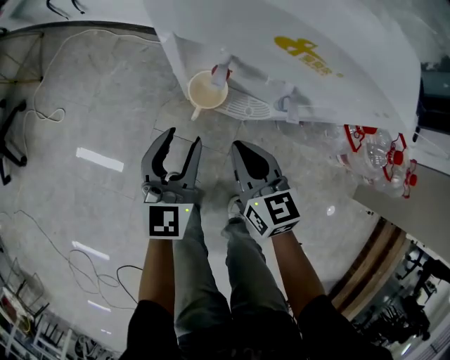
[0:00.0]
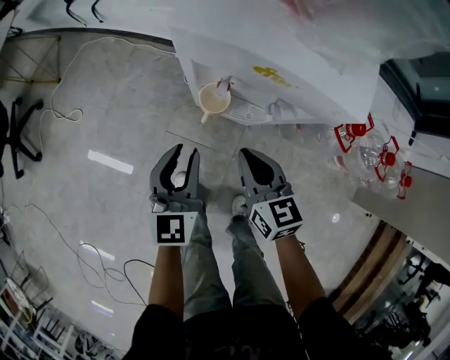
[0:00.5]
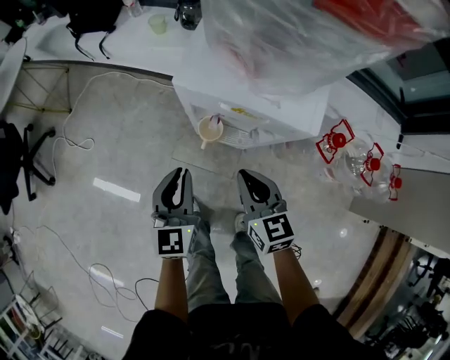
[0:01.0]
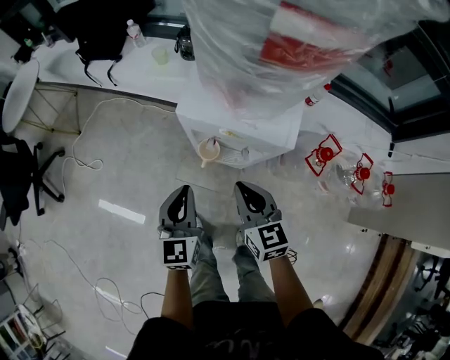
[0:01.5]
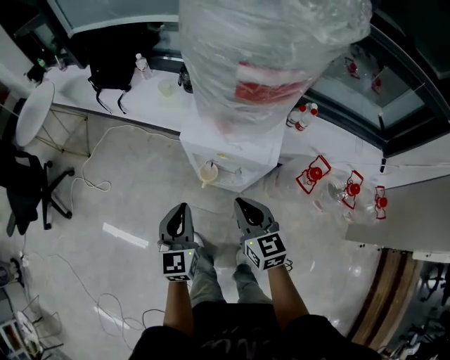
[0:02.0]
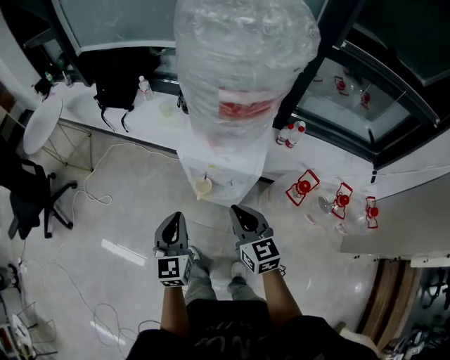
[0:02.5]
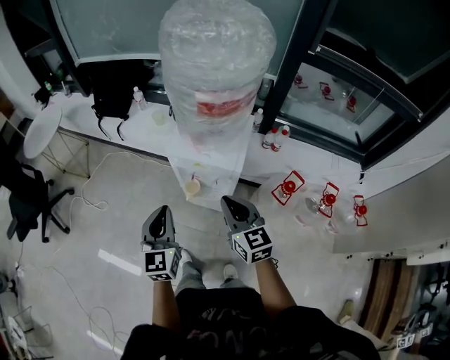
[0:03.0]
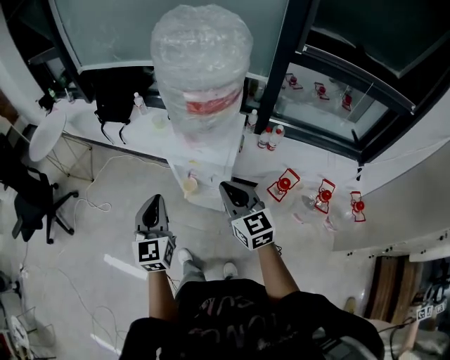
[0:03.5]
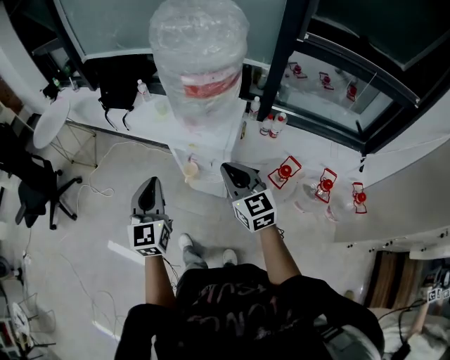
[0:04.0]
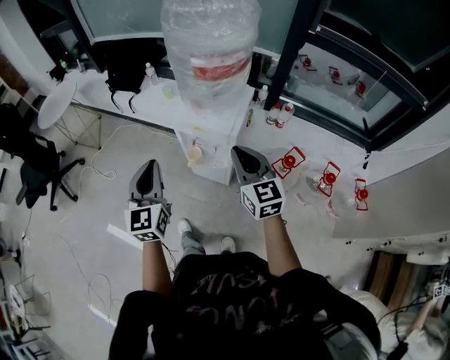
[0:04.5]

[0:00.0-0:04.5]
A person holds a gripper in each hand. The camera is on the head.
0:00.0 to 0:02.0: The two grippers go about 30 cm upward. The left gripper closes.
0:02.0 to 0:04.5: The right gripper heads upward, to the right and backward, covering some 20 cm, while the left gripper heads upward and backward, covering about 20 cm.

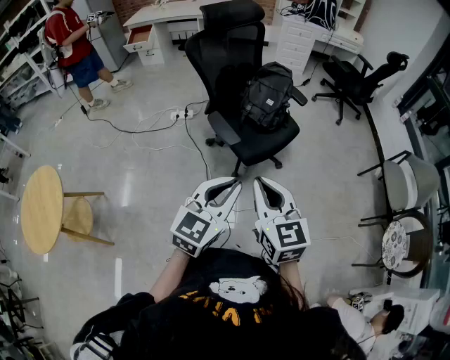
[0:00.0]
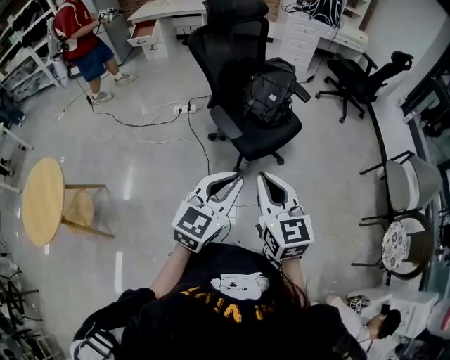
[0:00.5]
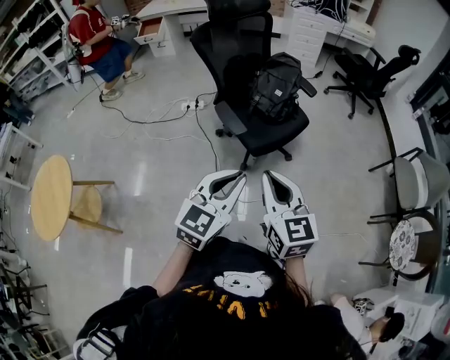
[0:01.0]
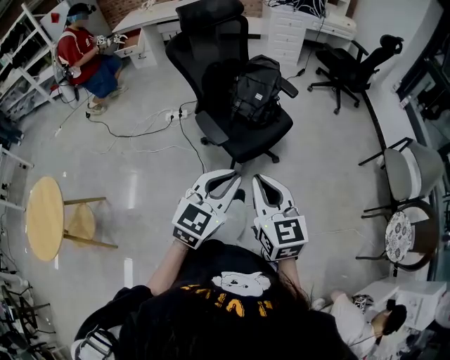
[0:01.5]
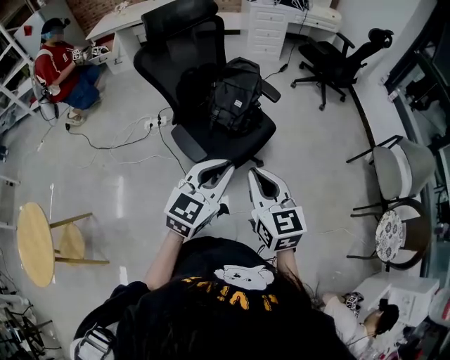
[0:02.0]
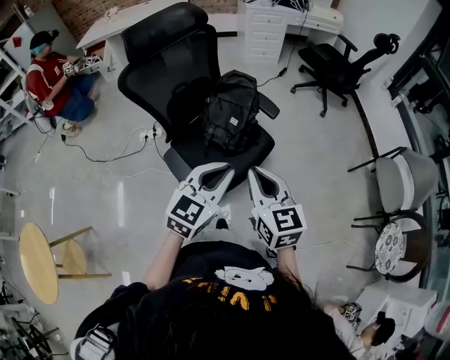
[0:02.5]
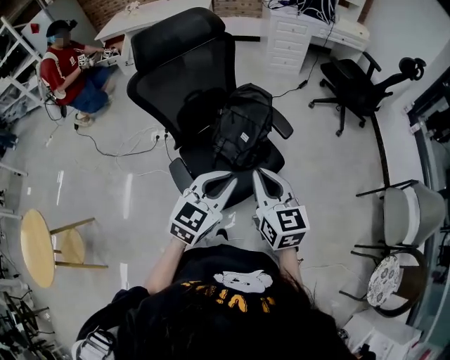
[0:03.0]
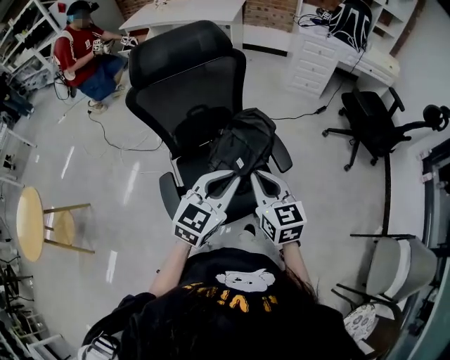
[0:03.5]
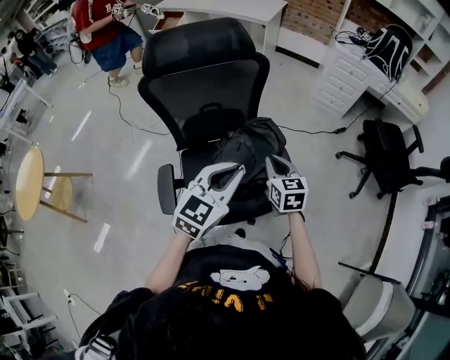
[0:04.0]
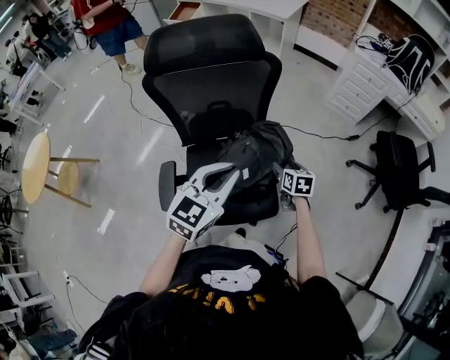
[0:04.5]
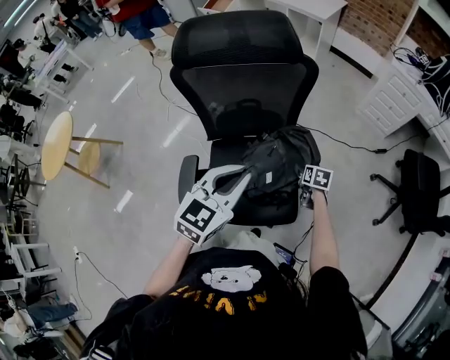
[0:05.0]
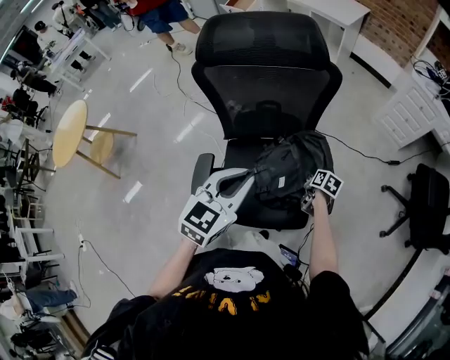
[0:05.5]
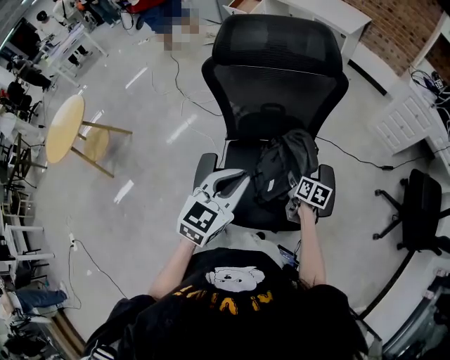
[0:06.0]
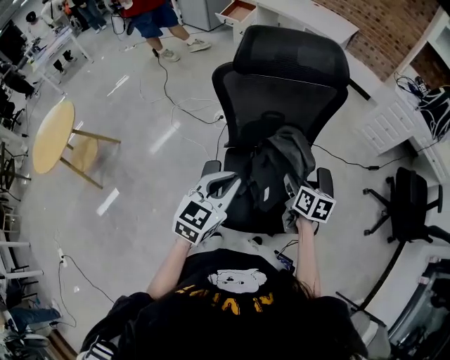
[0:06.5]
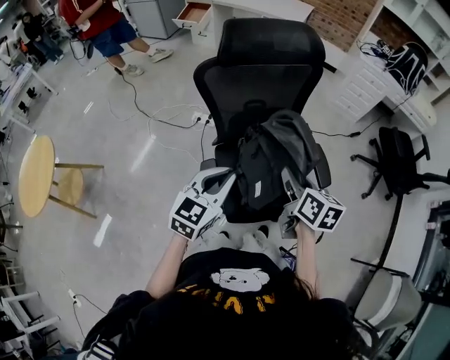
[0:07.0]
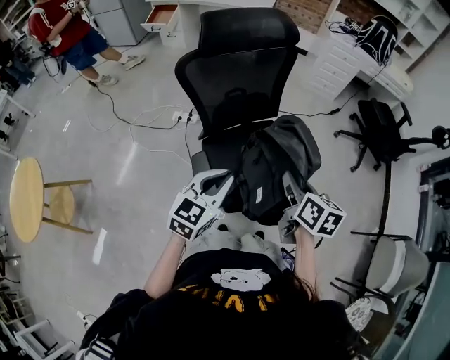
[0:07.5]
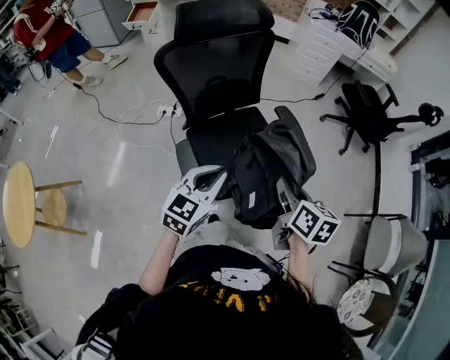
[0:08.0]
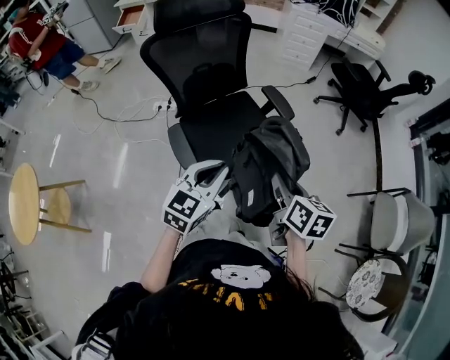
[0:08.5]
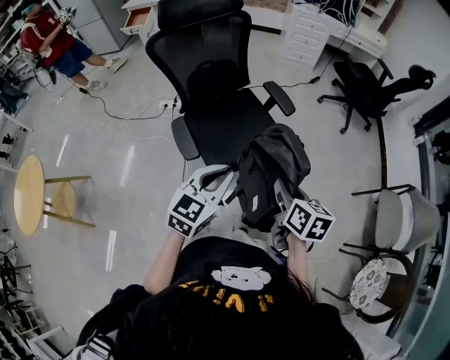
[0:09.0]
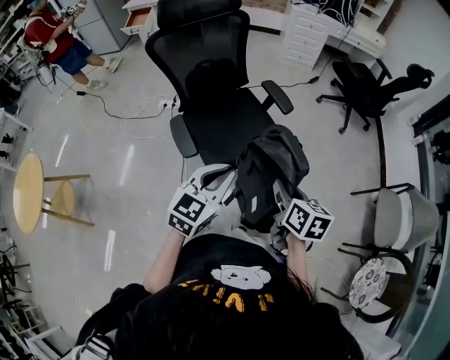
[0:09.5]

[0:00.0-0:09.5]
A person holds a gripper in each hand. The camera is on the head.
0:00.0 to 0:02.0: The two grippers go approximately 20 cm forward and to the right.
0:02.0 to 0:04.0: The right gripper ends up about 50 cm from where it was, and changes its angle by about 30 degrees, while the left gripper shifts by about 40 cm, and changes its angle by some 30 degrees.
0:04.0 to 0:05.5: The right gripper shifts approximately 25 cm downward and forward, rotates roughly 40 degrees, and opens up. The left gripper travels to the left by about 5 cm.
0:05.5 to 0:07.5: The left gripper changes place by approximately 20 cm, and changes its angle by about 20 degrees, while the right gripper changes place by some 50 cm, and turns by roughly 30 degrees.
0:07.5 to 0:09.5: The two grippers go about 25 cm backward and to the right.

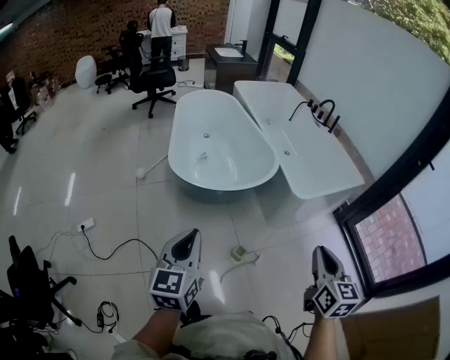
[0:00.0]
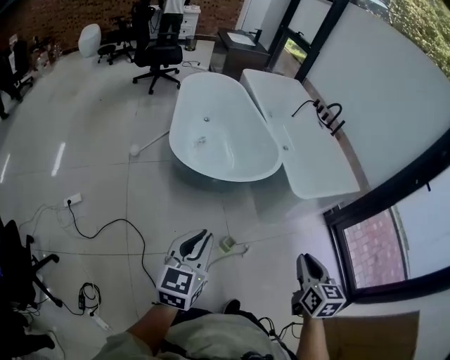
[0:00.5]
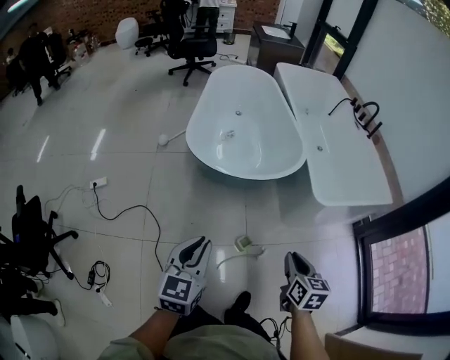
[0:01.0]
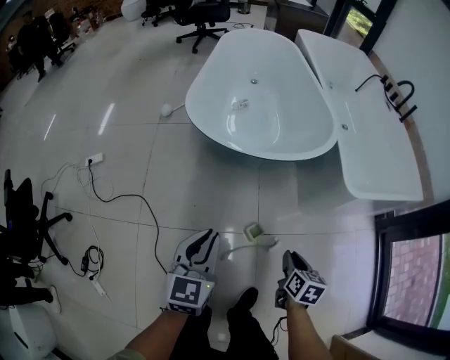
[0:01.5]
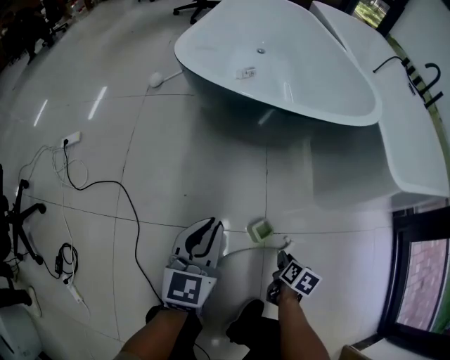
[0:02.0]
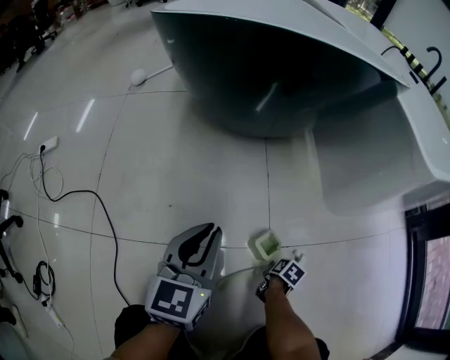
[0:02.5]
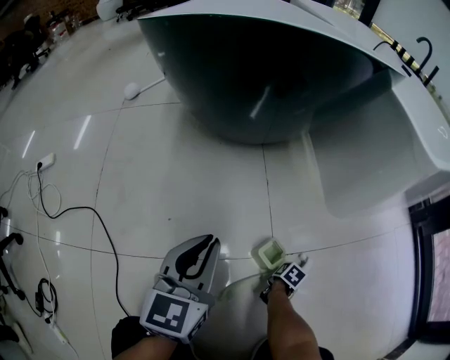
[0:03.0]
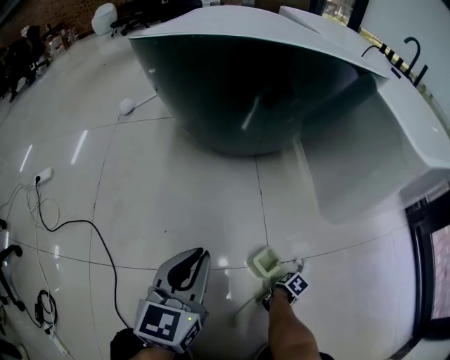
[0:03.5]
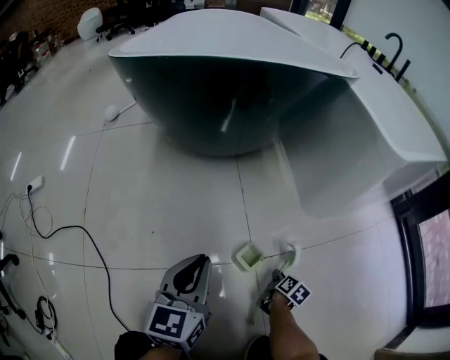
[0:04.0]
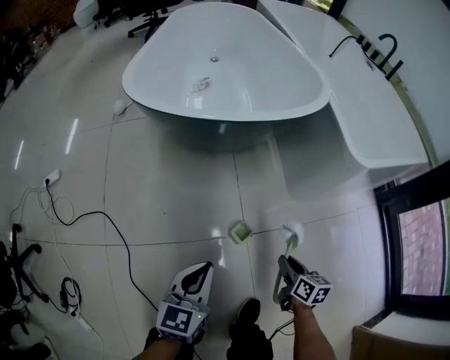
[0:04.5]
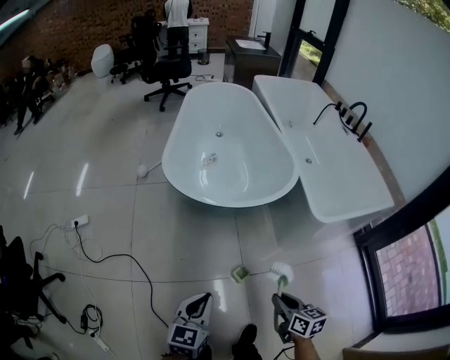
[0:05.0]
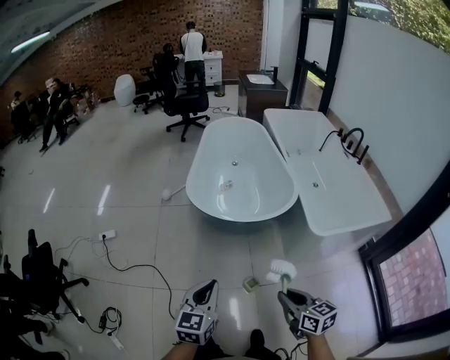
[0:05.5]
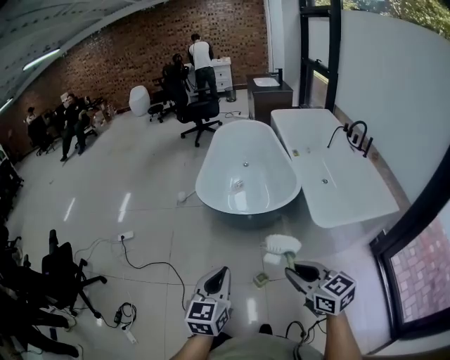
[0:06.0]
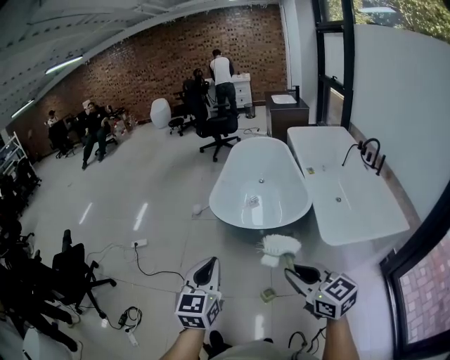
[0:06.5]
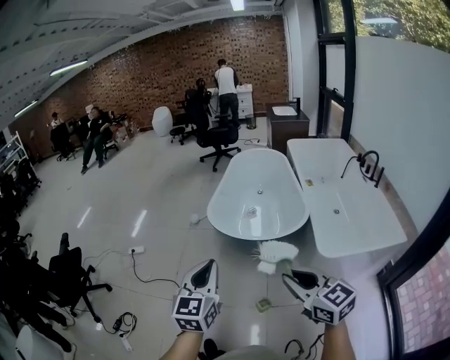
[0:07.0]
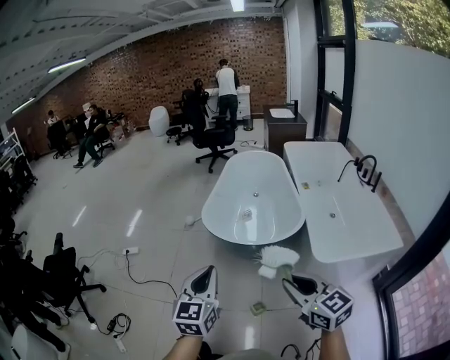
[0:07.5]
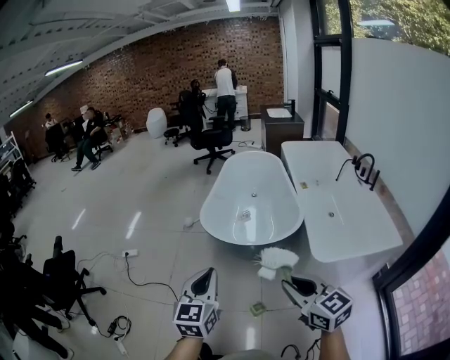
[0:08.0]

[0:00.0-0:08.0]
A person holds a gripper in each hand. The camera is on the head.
0:00.0 to 0:02.0: The grippers both shift downward by approximately 70 cm. The right gripper tilts its fingers roughly 40 degrees downward.
0:02.0 to 0:04.0: Both grippers move downward, some 25 cm. The right gripper changes its angle by roughly 20 degrees.
0:04.0 to 0:06.0: Both grippers move upward, some 90 cm. The right gripper tips its fingers upward by some 40 degrees.
0:06.0 to 0:08.0: The two grippers go approximately 5 cm upward.

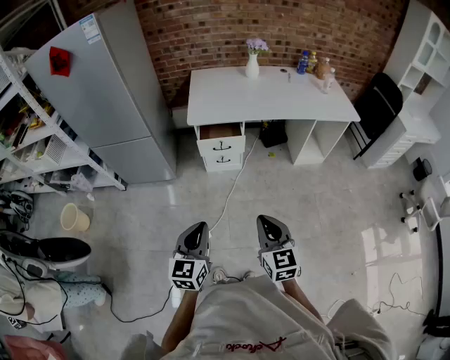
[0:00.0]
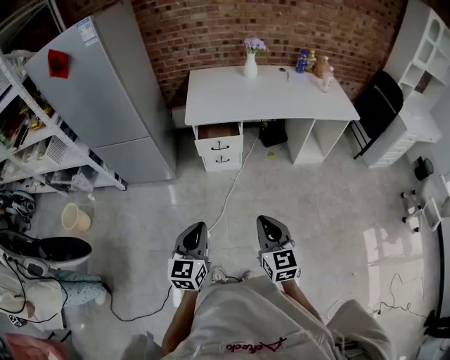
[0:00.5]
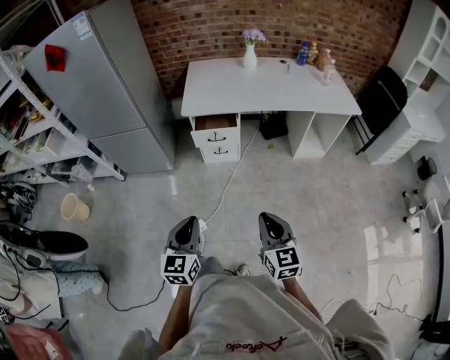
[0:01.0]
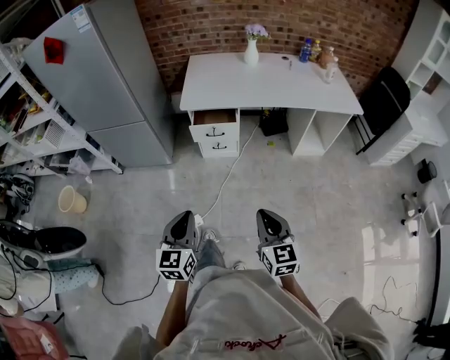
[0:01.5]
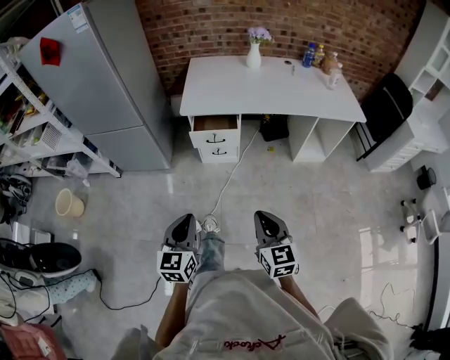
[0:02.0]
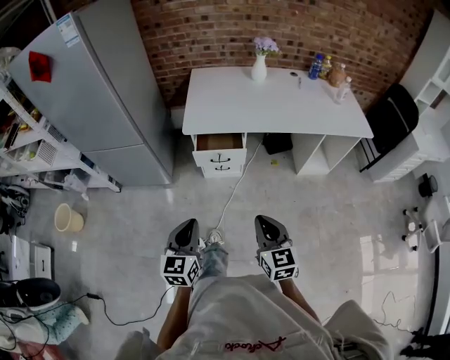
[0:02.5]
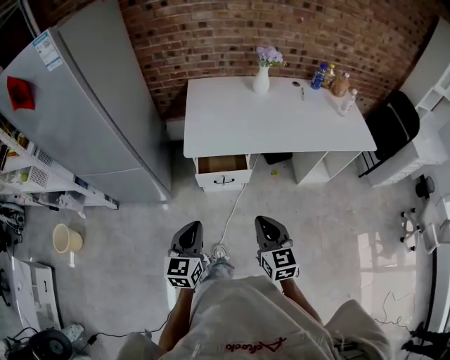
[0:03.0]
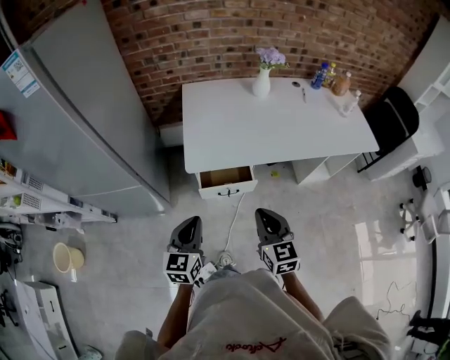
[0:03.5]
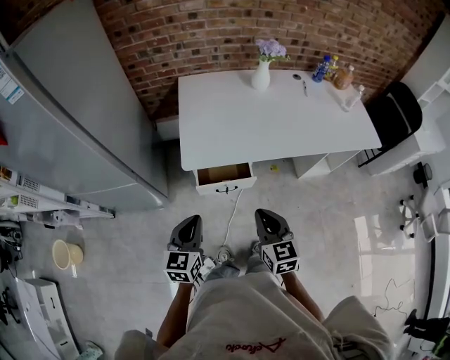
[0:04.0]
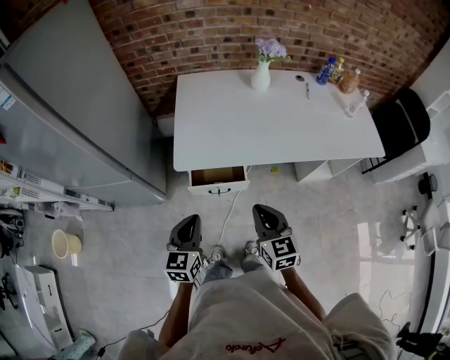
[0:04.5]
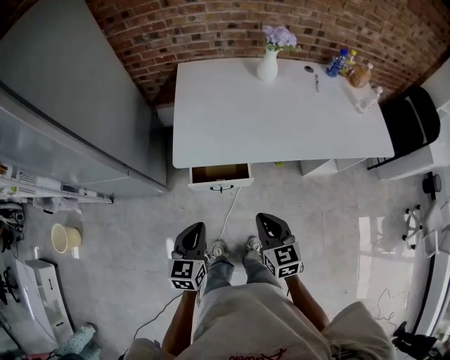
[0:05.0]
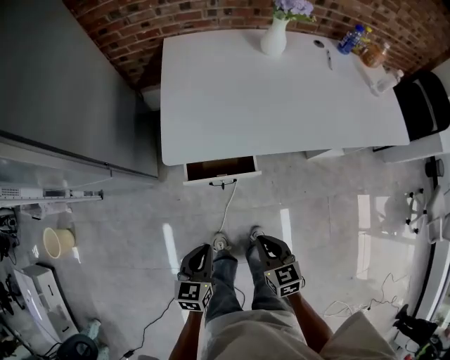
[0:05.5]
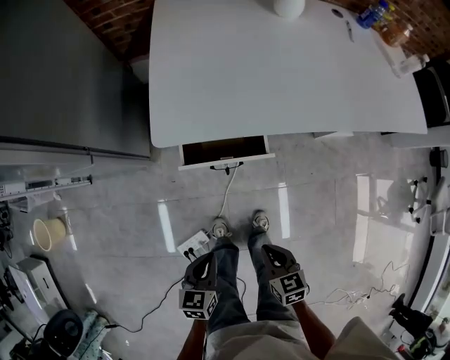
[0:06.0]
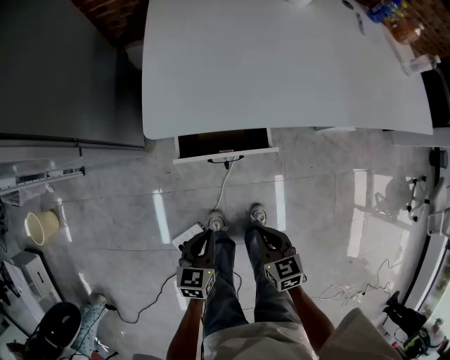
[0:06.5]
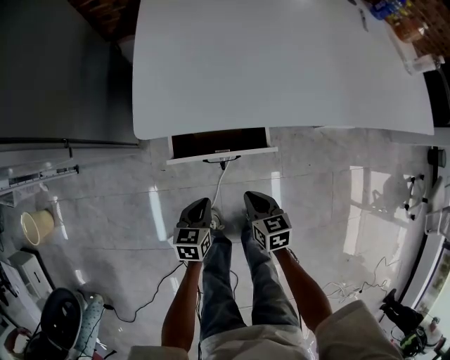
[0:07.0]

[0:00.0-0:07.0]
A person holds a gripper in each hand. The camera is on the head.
0:00.0 to 0:02.0: The left gripper changes place by some 5 cm. The right gripper shifts approximately 5 cm to the right.
0:02.0 to 0:03.5: Both grippers travel together forward, roughly 35 cm.
0:03.5 to 0:05.0: The left gripper heads to the right and downward, covering roughly 10 cm. The right gripper is displaced downward and to the right by some 10 cm.
0:05.0 to 0:07.0: Both grippers travel together downward, about 35 cm. The left gripper swivels about 20 degrees, while the right gripper turns by approximately 20 degrees.
